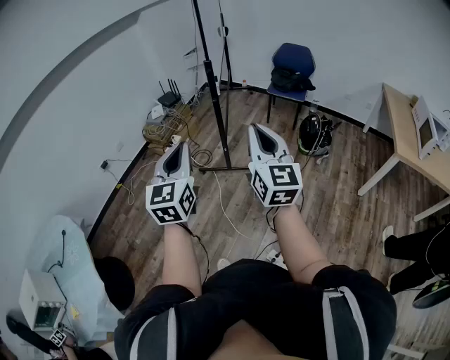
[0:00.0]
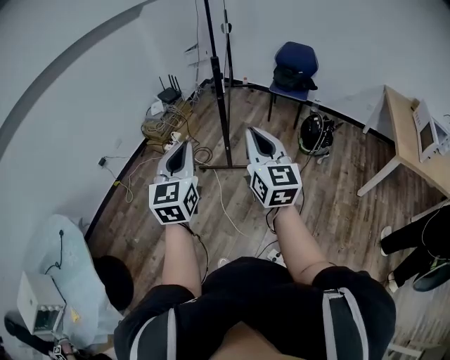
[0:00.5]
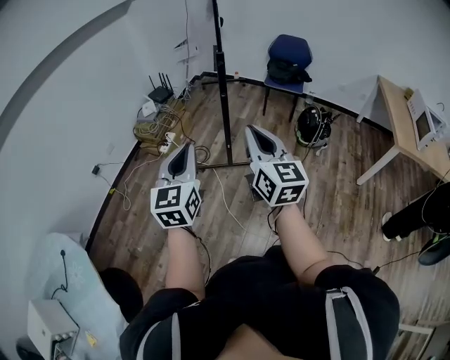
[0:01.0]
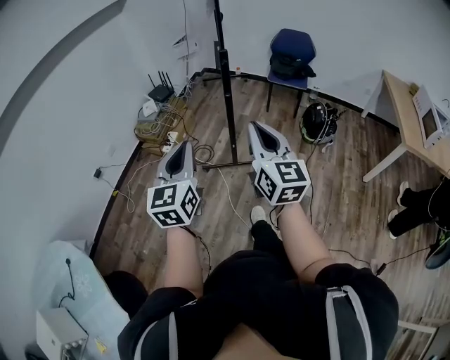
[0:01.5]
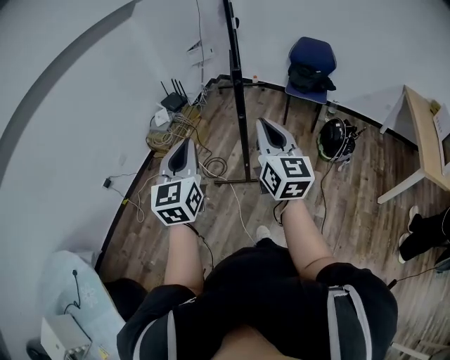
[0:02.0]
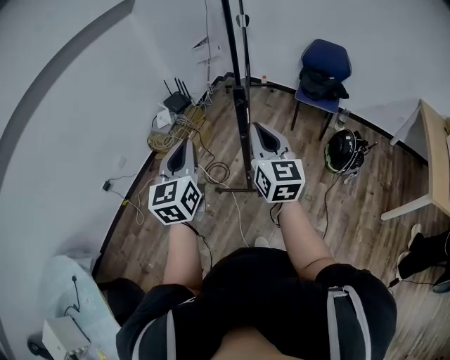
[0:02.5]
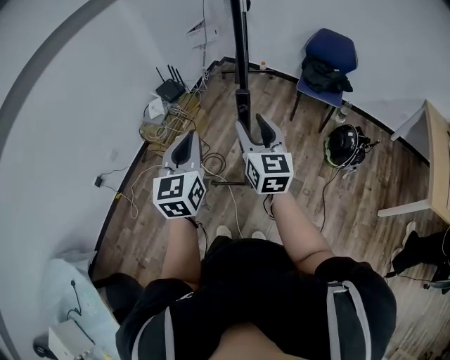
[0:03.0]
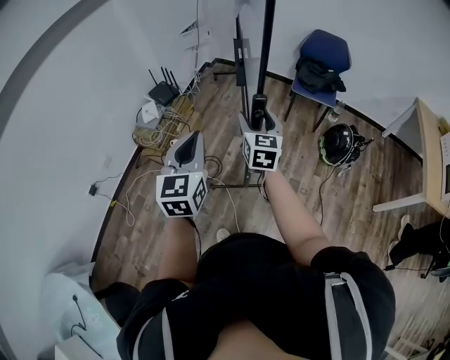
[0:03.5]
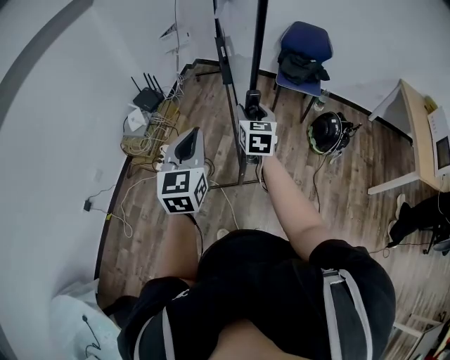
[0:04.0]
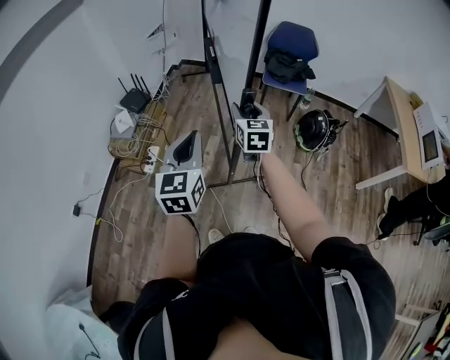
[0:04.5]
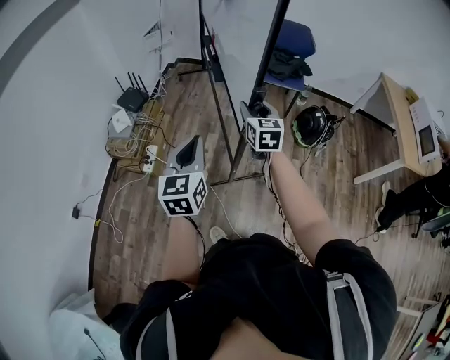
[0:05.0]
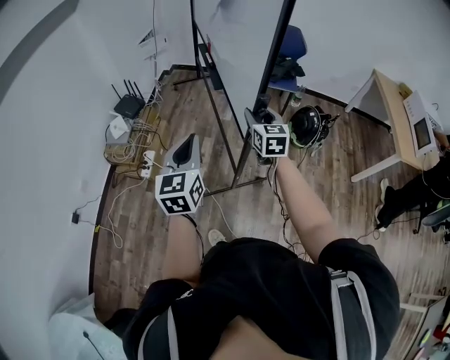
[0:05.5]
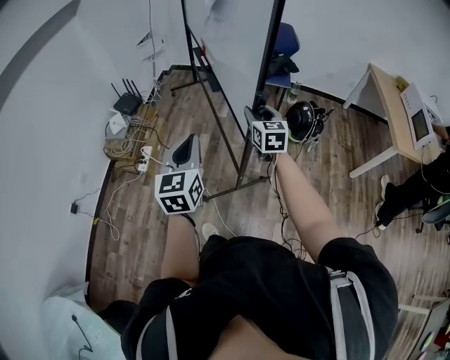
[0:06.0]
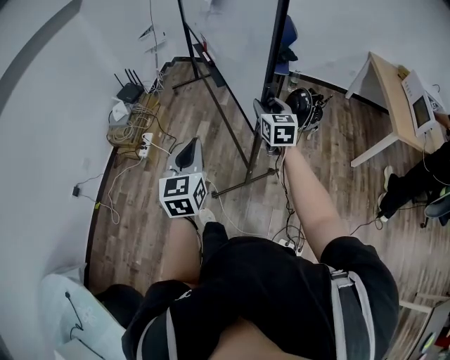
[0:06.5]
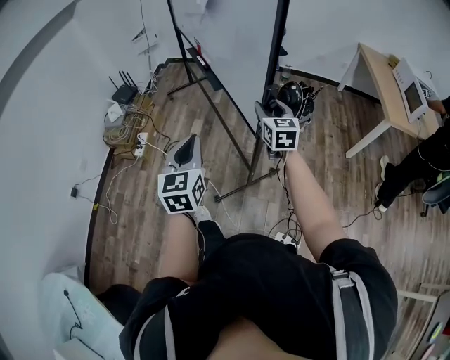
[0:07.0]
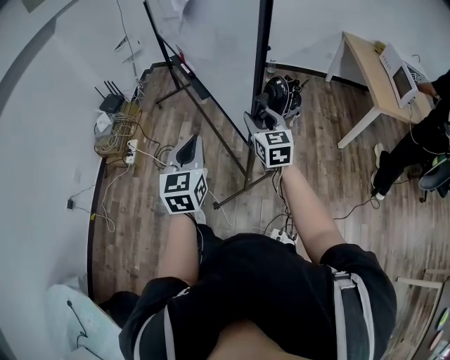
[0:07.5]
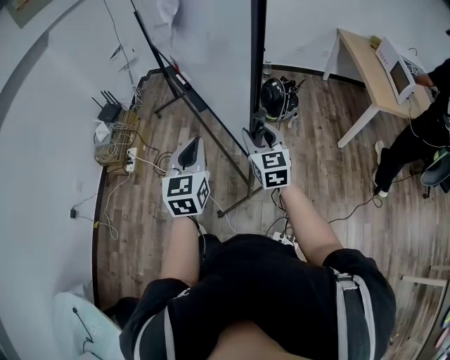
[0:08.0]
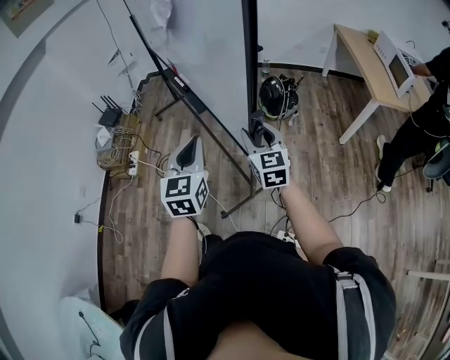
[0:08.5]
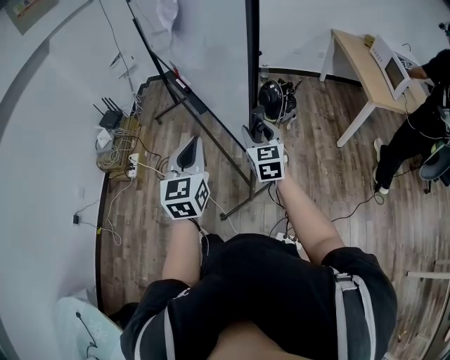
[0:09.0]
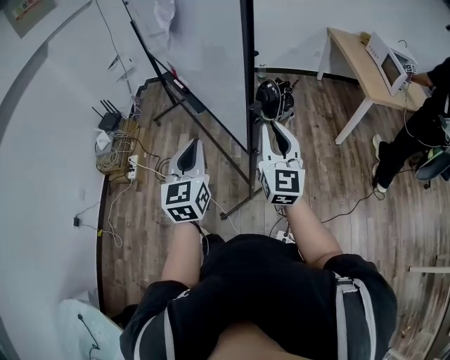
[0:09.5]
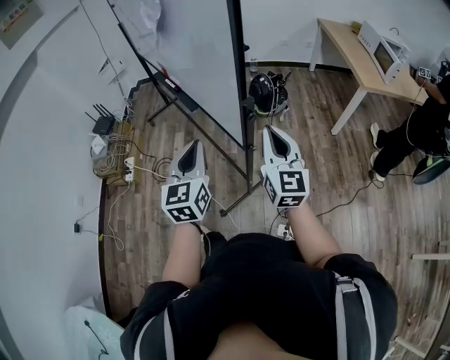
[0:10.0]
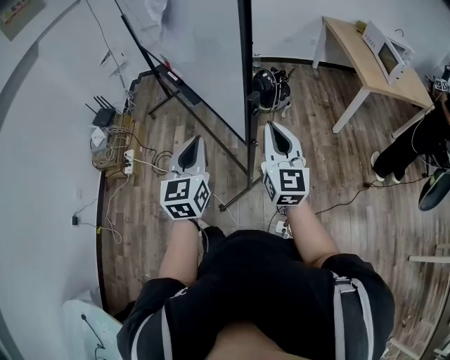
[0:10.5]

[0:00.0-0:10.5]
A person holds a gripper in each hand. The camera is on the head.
0:00.0 to 0:02.0: The right gripper goes some 25 cm forward. The left gripper travels forward and to the left by about 30 cm.
0:02.0 to 0:04.0: The right gripper goes roughly 35 cm forward and downward, changes its angle by some 30 degrees, and opens; the left gripper moves forward, some 25 cm.
0:04.0 to 0:06.5: The right gripper goes approximately 30 cm to the right and backward. Meanwhile the left gripper is displaced backward and to the right by roughly 25 cm.
0:06.5 to 0:08.5: The left gripper moves to the right, roughly 15 cm; the right gripper travels backward and to the right by approximately 20 cm.
0:08.5 to 0:10.5: The right gripper travels backward and upward by approximately 10 cm, and closes up.

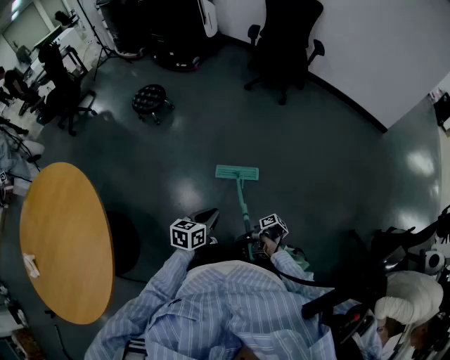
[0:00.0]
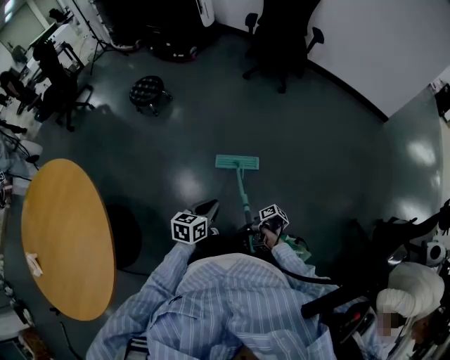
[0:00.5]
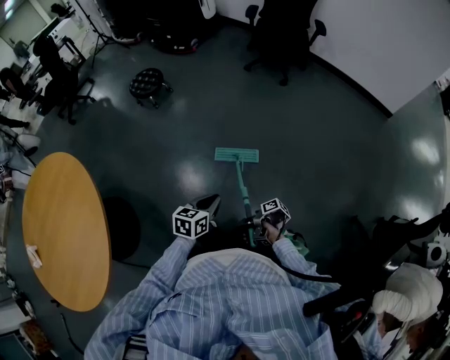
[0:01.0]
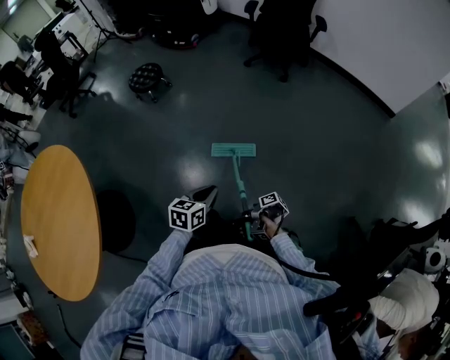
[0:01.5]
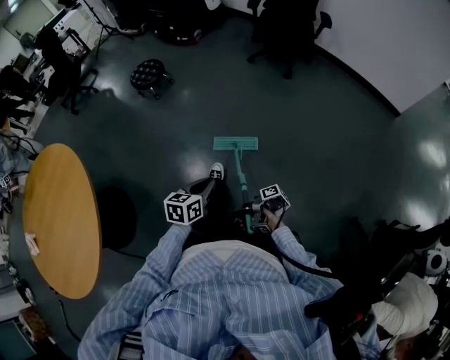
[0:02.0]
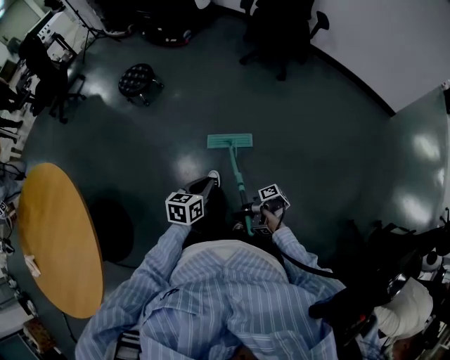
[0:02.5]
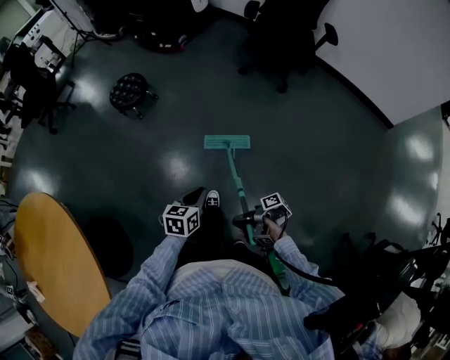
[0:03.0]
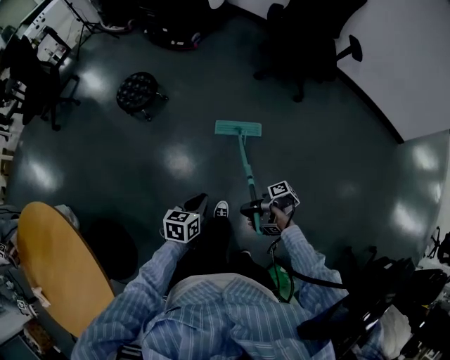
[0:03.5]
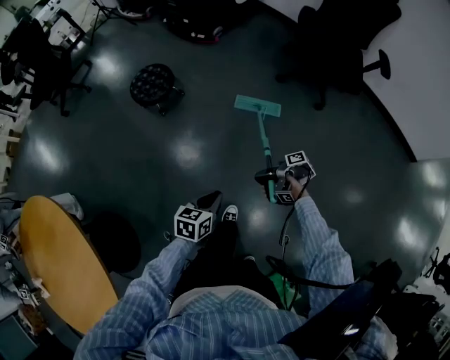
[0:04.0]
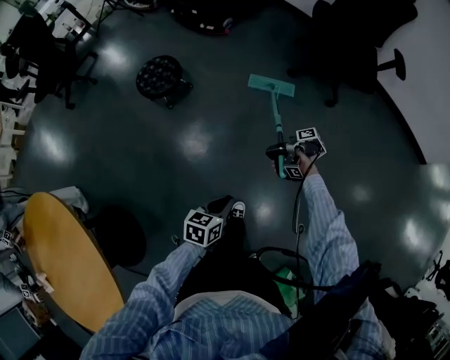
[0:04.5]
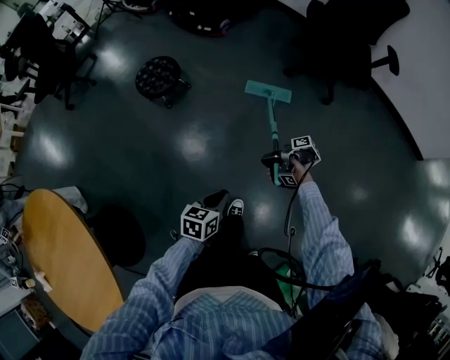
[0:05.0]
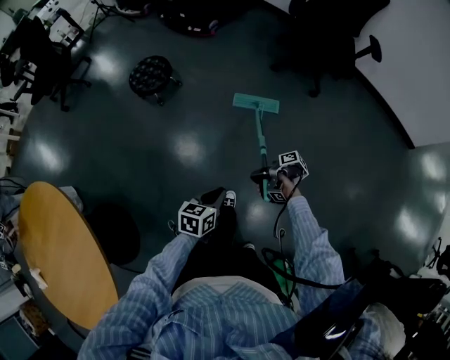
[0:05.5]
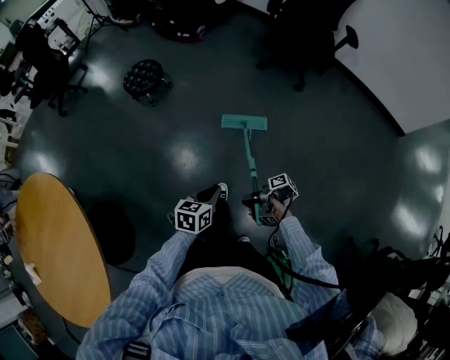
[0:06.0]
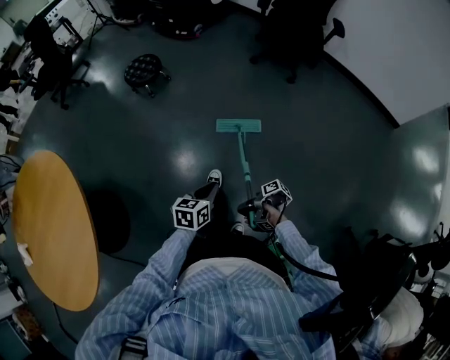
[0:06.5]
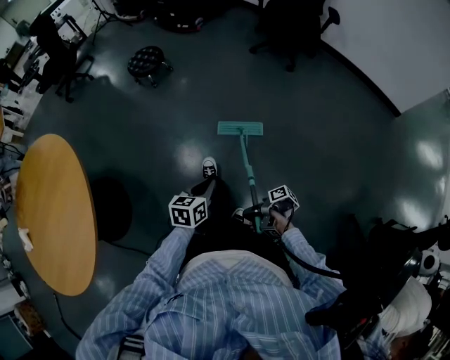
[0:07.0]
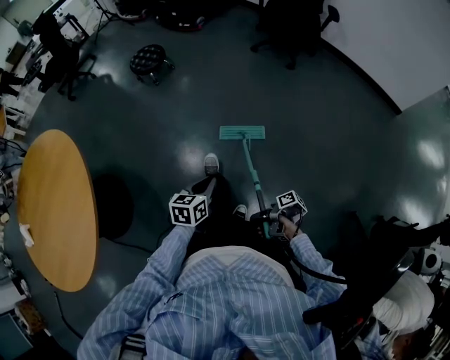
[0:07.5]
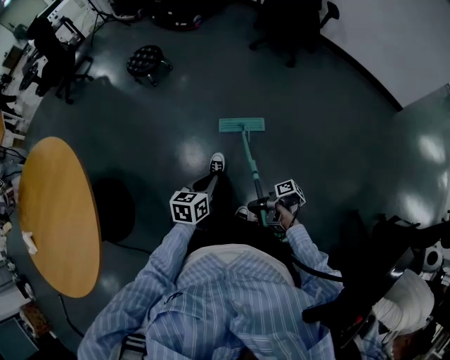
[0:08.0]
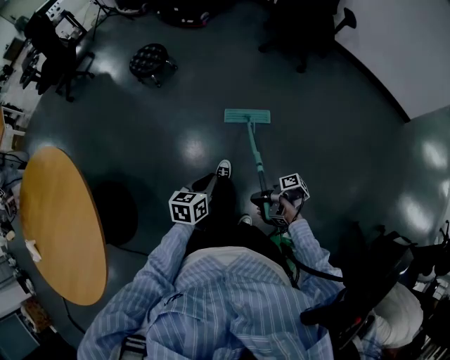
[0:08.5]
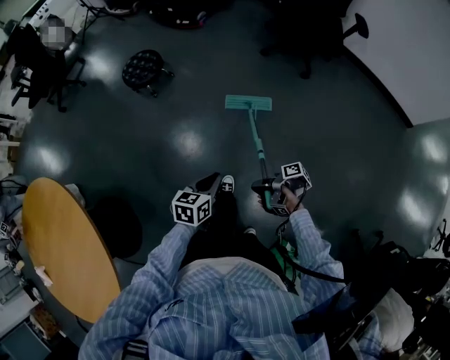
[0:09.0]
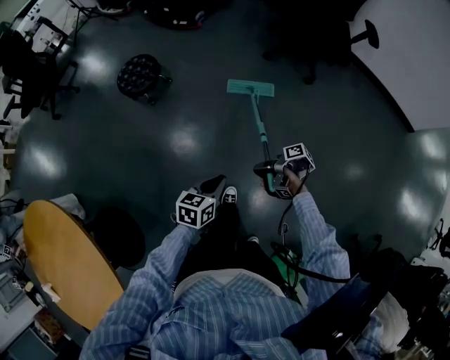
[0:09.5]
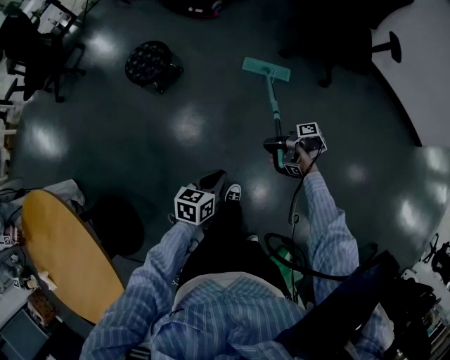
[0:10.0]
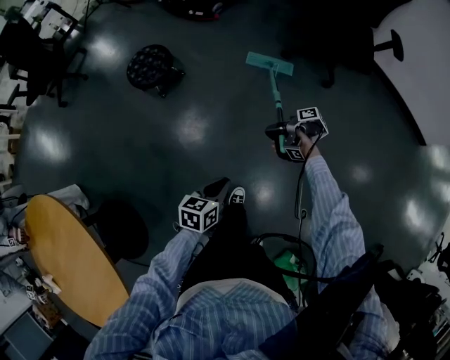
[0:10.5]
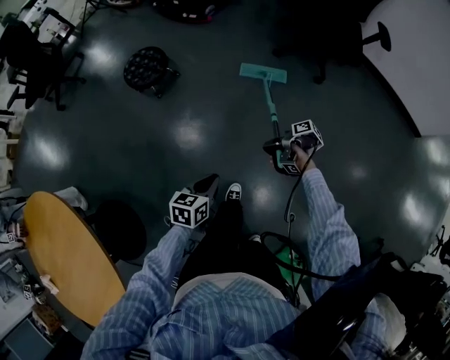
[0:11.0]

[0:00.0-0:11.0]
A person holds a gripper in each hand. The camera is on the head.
0:00.0 to 0:02.0: The left gripper changes place by roughly 10 cm.
0:02.0 to 0:03.5: The left gripper shifts by about 35 cm.
0:05.5 to 0:07.5: The left gripper changes place by approximately 35 cm.
0:07.5 to 0:09.0: The left gripper shifts by approximately 30 cm.
0:09.0 to 0:11.0: The left gripper shifts by about 10 cm.

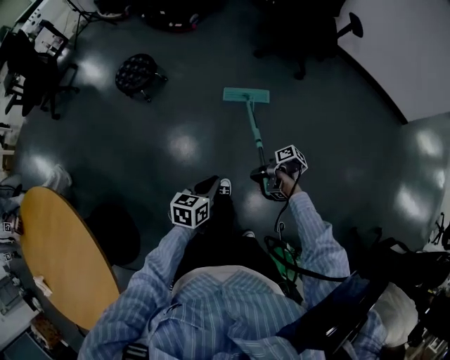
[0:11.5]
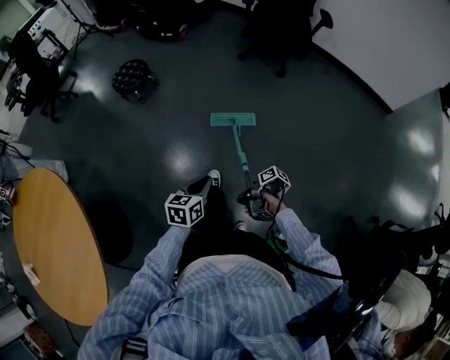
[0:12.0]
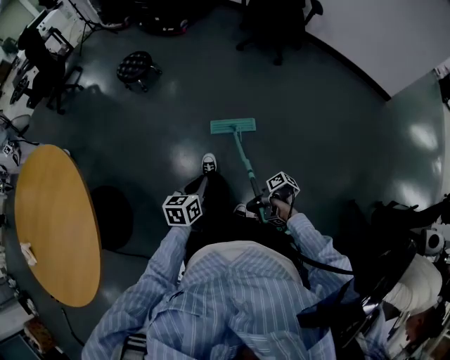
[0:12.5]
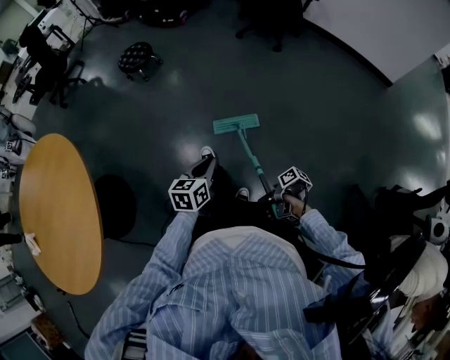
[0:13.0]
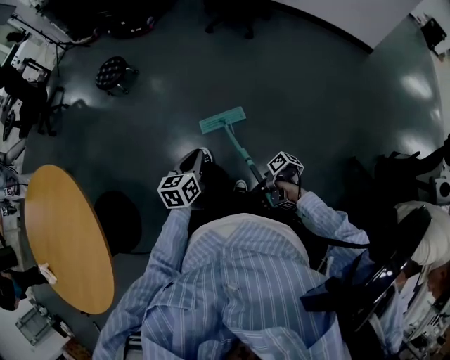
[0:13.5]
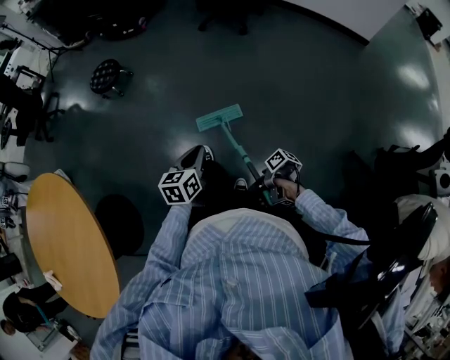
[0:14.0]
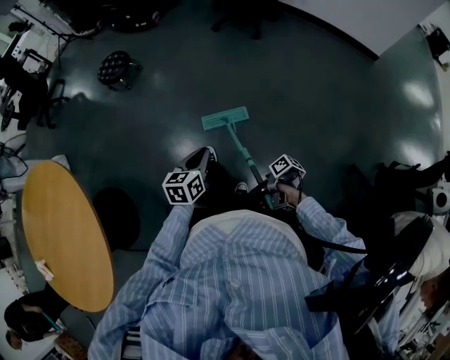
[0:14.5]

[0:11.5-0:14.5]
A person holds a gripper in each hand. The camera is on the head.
0:11.5 to 0:13.0: The left gripper shifts by some 30 cm.

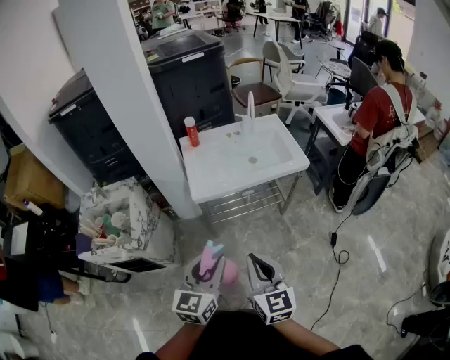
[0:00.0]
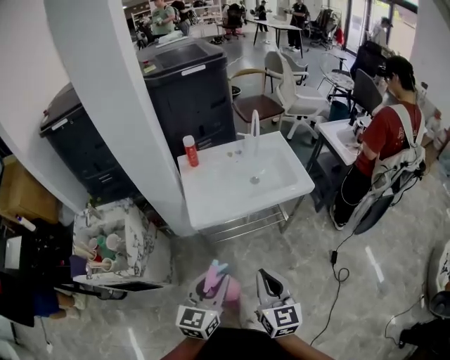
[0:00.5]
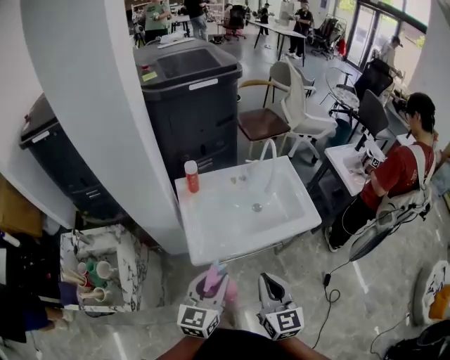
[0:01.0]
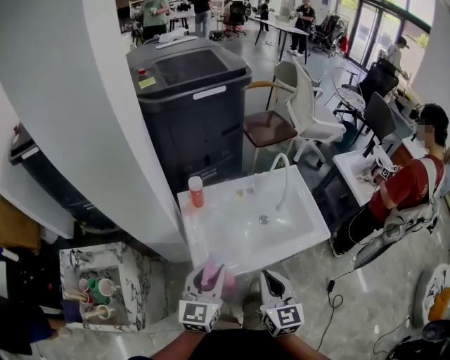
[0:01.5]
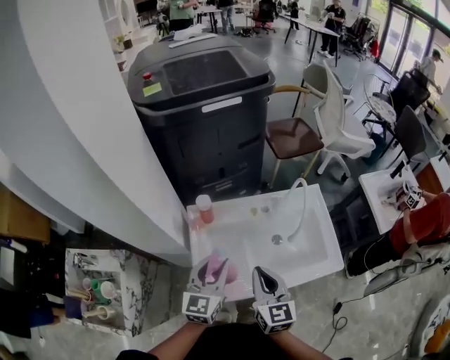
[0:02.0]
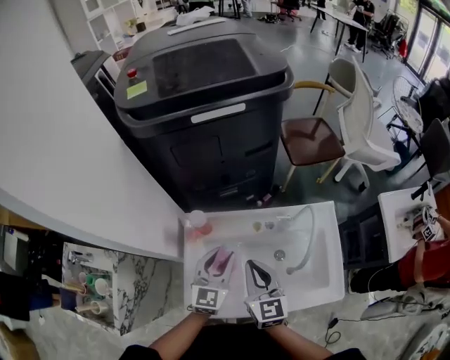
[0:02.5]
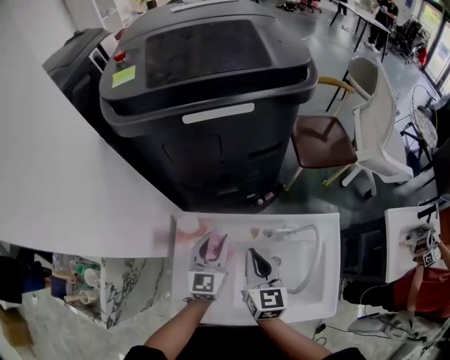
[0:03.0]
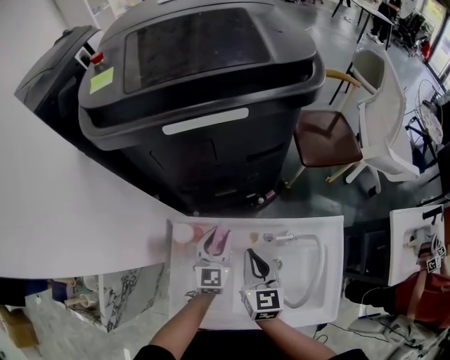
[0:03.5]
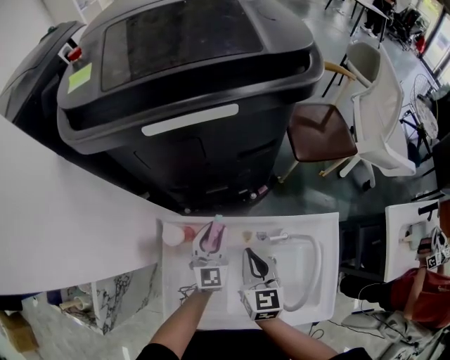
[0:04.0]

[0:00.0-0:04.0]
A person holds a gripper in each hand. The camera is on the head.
0:00.0 to 0:02.0: The two grippers travel together, forward, roughly 50 cm.
0:02.0 to 0:04.0: Both grippers travel together forward and downward, about 30 cm. The left gripper changes its angle by roughly 20 degrees.
